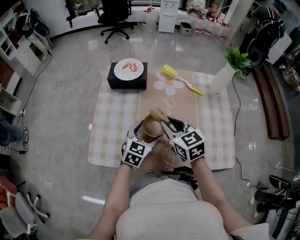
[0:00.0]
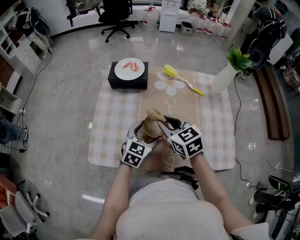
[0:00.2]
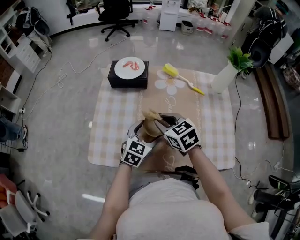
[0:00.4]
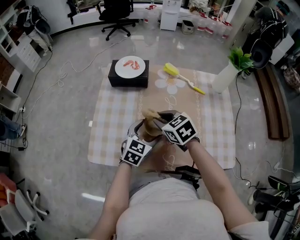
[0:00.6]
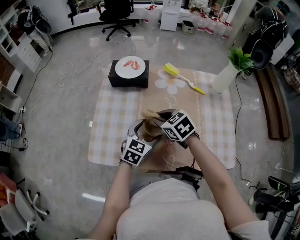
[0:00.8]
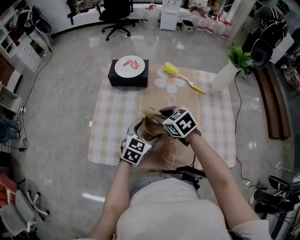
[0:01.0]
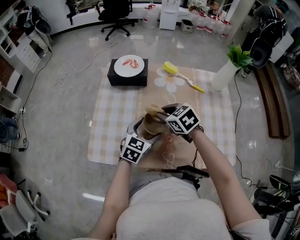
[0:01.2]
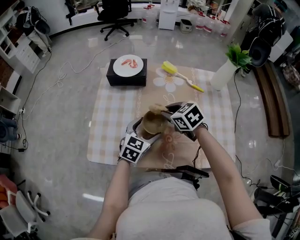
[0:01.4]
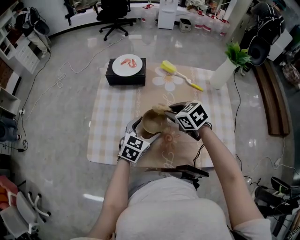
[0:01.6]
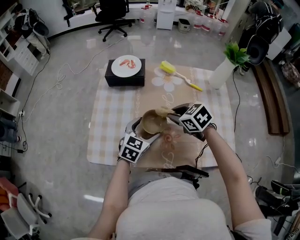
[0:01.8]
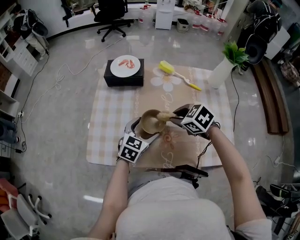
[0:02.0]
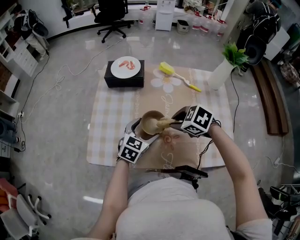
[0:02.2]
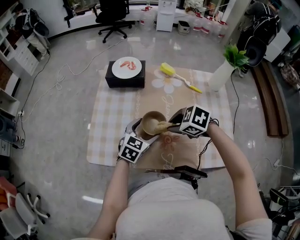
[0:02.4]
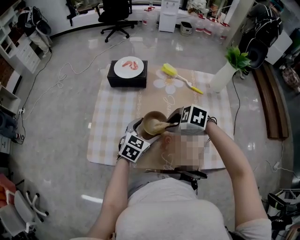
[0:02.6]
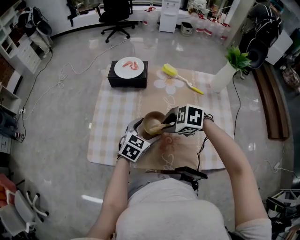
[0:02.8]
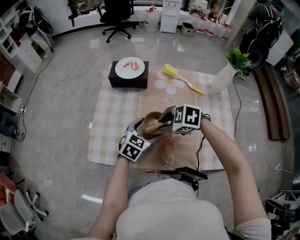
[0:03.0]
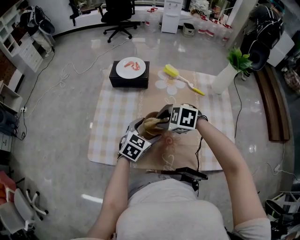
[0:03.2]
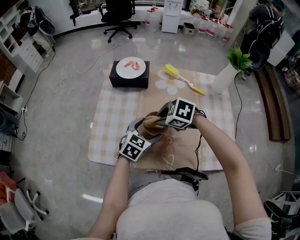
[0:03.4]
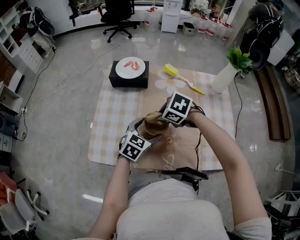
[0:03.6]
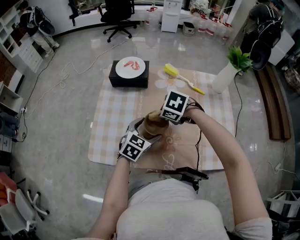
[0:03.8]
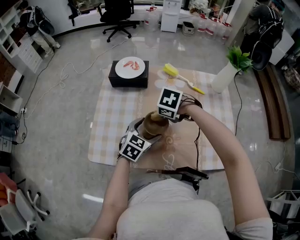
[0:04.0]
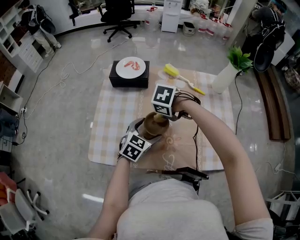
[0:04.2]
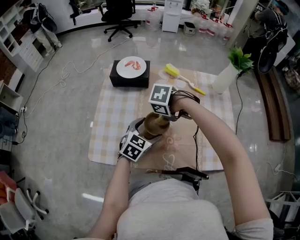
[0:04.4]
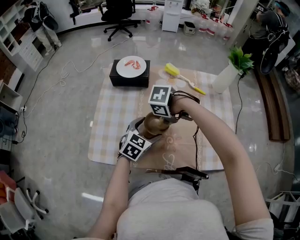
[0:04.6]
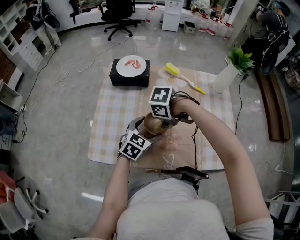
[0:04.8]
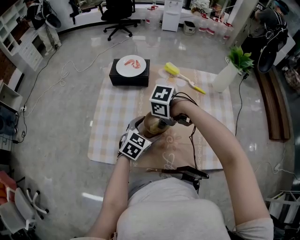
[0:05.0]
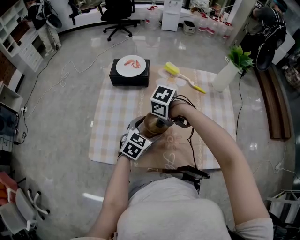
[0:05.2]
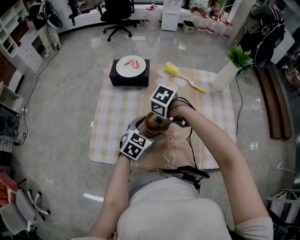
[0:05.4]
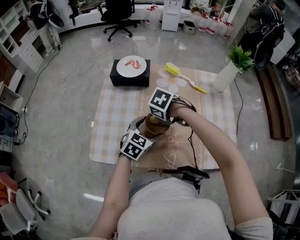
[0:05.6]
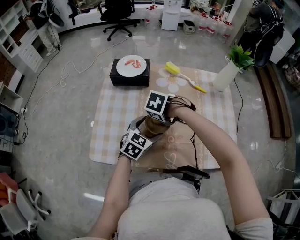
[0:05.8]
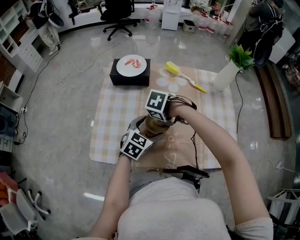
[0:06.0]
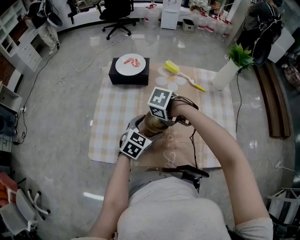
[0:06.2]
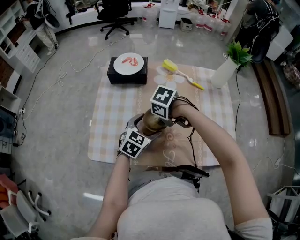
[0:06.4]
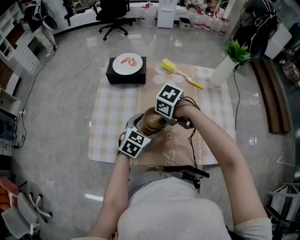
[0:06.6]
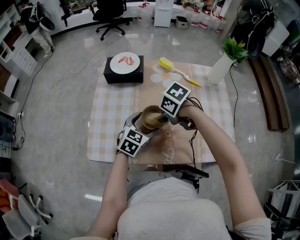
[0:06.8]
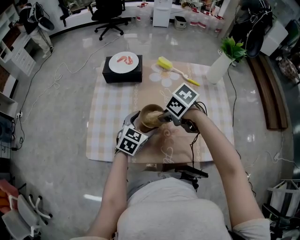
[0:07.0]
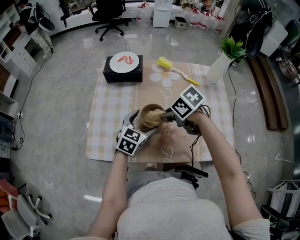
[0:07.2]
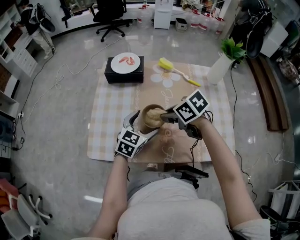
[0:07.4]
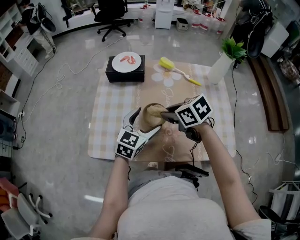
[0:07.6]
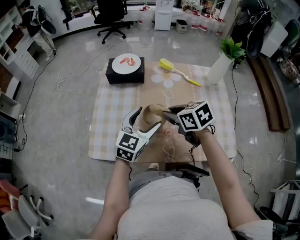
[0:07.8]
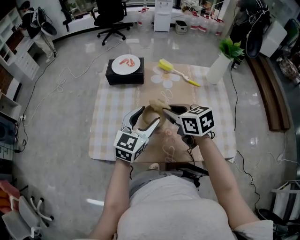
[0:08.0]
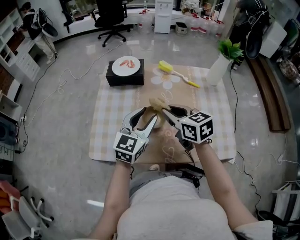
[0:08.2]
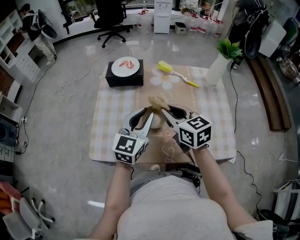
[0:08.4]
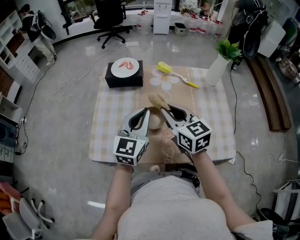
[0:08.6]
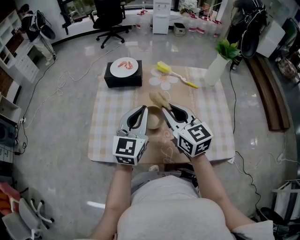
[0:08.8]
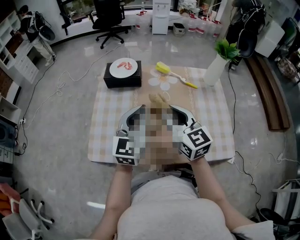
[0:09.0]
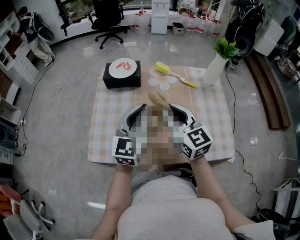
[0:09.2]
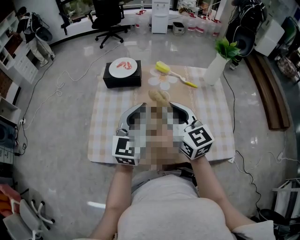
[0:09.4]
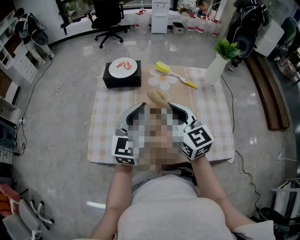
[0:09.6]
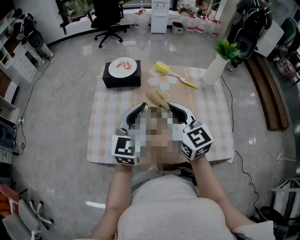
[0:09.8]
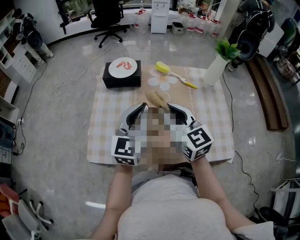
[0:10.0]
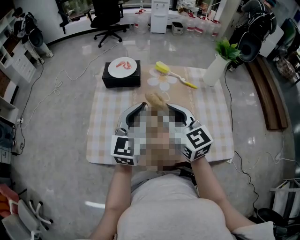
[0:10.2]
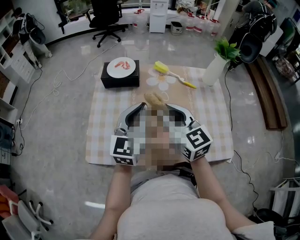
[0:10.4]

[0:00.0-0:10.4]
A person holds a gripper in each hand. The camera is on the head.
0.0 to 1.4 s: The right gripper moves downward, roughly 5 cm, and changes its angle by about 20 degrees.
1.4 to 3.0 s: The right gripper shifts by approximately 10 cm, and swivels some 40 degrees.
3.0 to 4.4 s: The right gripper changes place by approximately 5 cm, and rotates approximately 40 degrees.
4.4 to 6.0 s: There are only small adjustments of the grippers.
6.0 to 7.4 s: The right gripper moves upward, about 5 cm, and tilts its fingers roughly 30 degrees upward.
7.4 to 9.0 s: The grippers both shift upward by about 15 cm. The left gripper rotates roughly 30 degrees, and closes; the right gripper angles its fingers upward, by about 40 degrees.
9.0 to 10.4 s: The grippers move only a little.

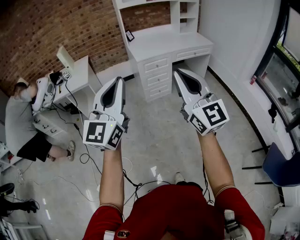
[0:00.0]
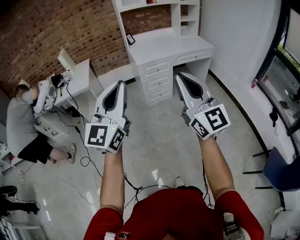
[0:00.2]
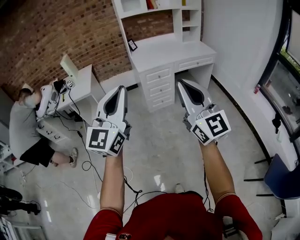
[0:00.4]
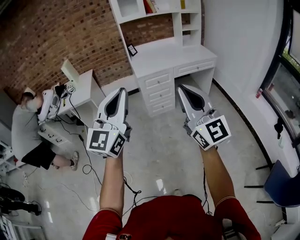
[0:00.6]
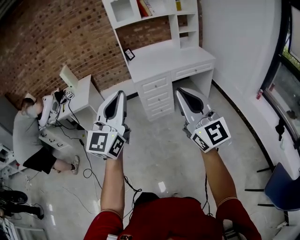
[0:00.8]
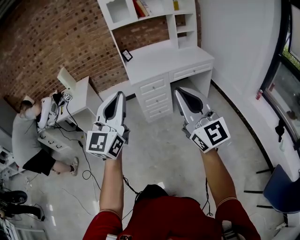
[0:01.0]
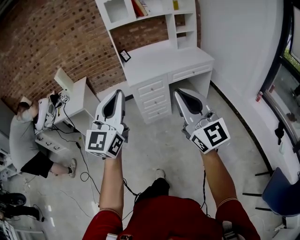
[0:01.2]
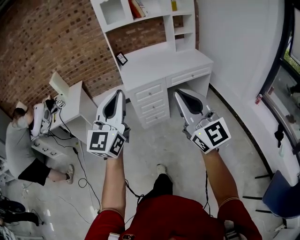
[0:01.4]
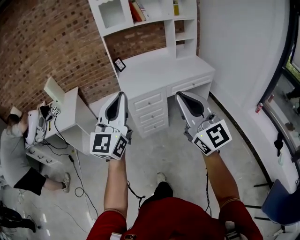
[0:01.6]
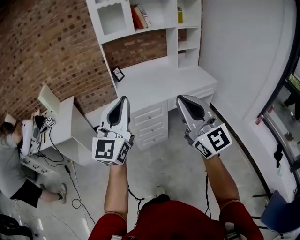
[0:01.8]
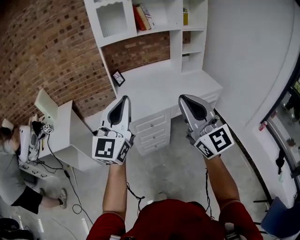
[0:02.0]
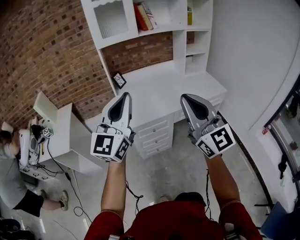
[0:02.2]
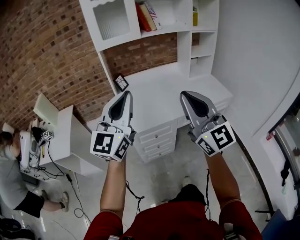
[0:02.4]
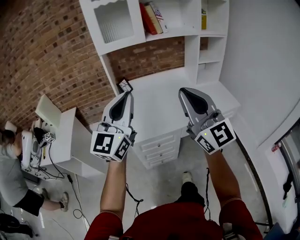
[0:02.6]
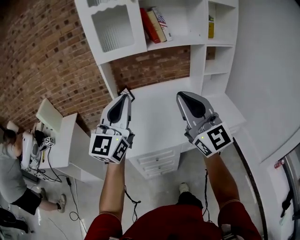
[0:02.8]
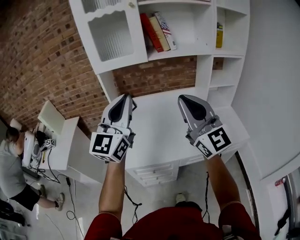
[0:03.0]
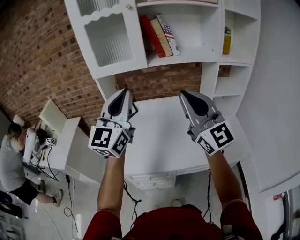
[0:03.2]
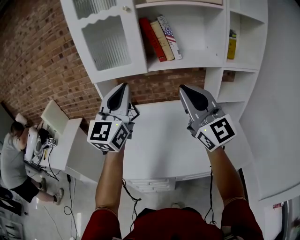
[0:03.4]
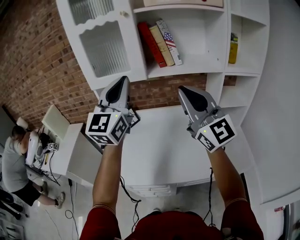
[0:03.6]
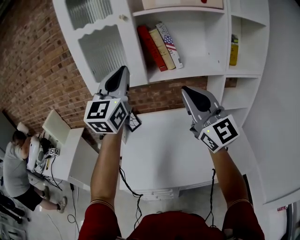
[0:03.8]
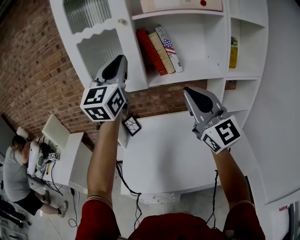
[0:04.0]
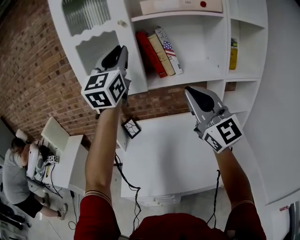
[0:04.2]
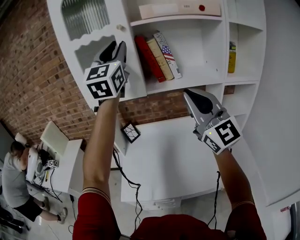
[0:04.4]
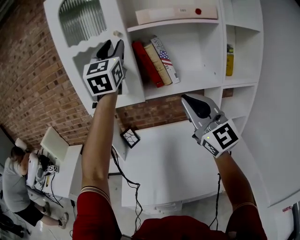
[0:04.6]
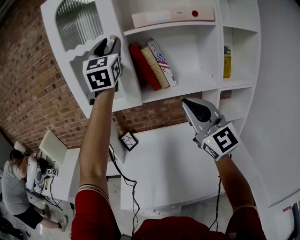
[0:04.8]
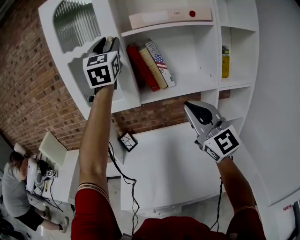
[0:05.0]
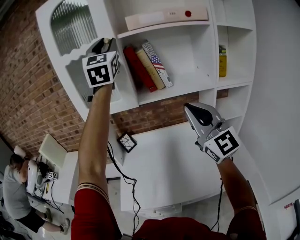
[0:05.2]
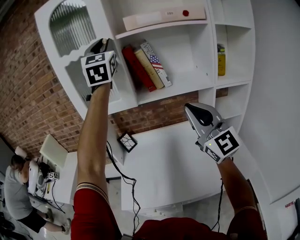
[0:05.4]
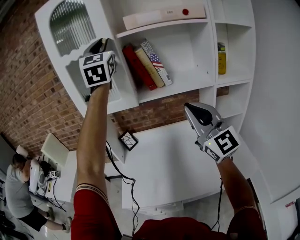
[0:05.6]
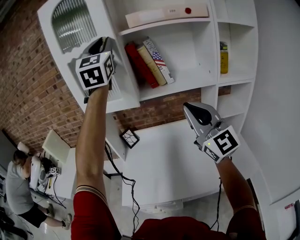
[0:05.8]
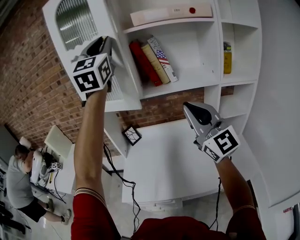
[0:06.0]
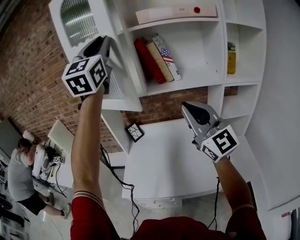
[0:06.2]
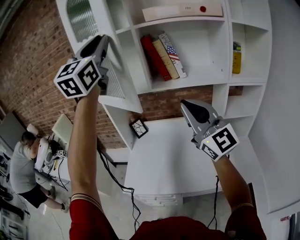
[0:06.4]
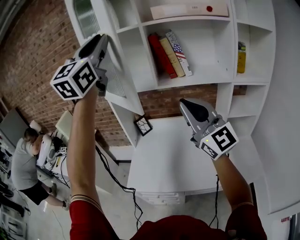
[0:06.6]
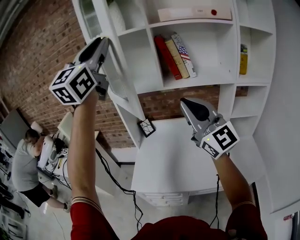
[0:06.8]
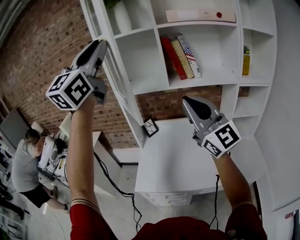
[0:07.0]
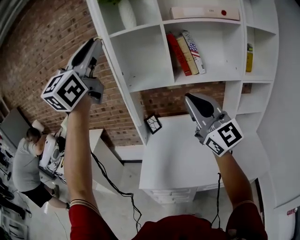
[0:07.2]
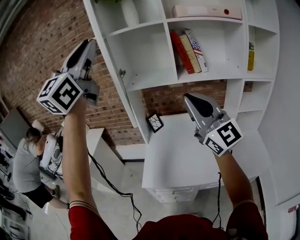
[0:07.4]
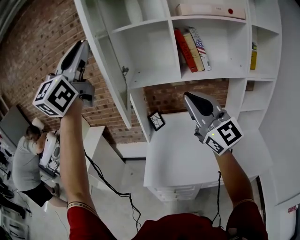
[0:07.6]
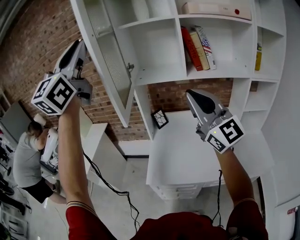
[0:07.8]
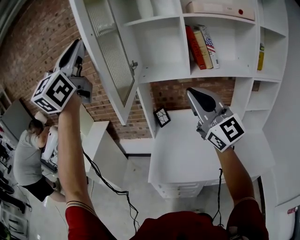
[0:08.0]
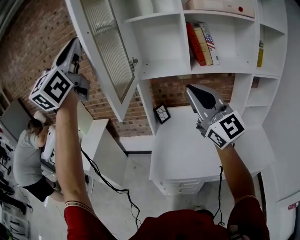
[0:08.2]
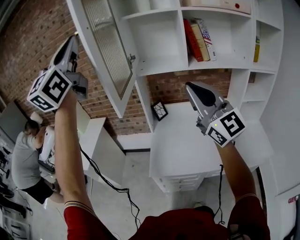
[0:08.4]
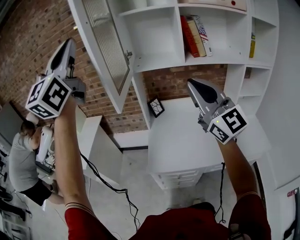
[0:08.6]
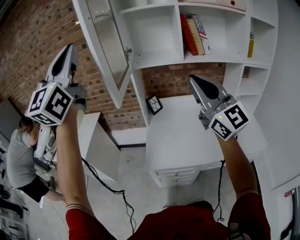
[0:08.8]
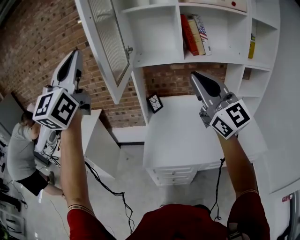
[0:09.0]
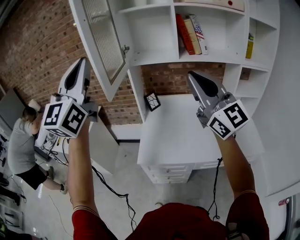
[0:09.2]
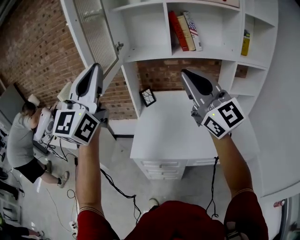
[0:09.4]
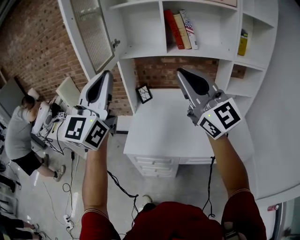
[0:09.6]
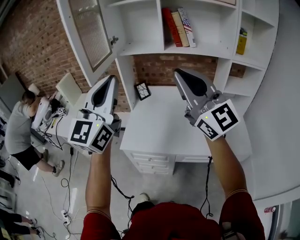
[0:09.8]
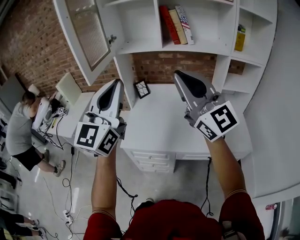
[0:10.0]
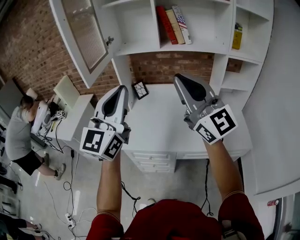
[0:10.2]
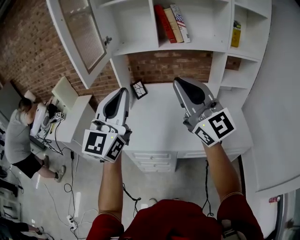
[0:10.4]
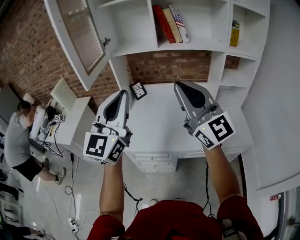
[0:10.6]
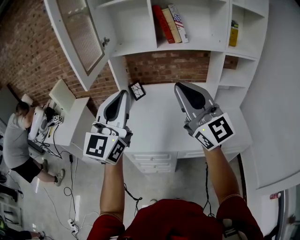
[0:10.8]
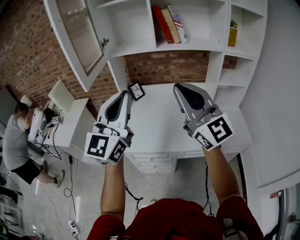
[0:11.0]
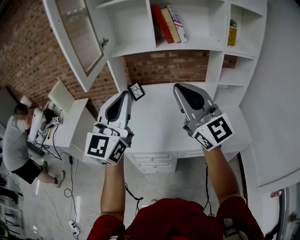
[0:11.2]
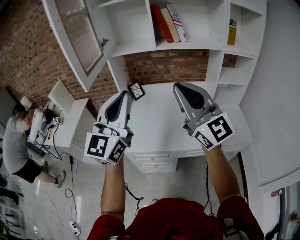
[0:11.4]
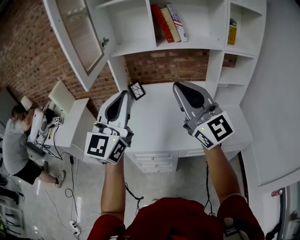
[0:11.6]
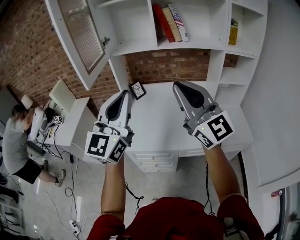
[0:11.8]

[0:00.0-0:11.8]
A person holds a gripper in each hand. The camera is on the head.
0.0 to 1.4 s: The right gripper is displaced to the right and forward by approximately 25 cm. Meanwhile the left gripper travels forward and to the right by about 25 cm.
1.4 to 3.0 s: Both grippers are carried forward, roughly 70 cm.
3.0 to 4.4 s: The left gripper goes some 35 cm forward and upward, and opens. Meanwhile the right gripper moves forward, to the right and upward, some 20 cm.
4.4 to 6.0 s: The left gripper goes roughly 5 cm upward.
6.0 to 7.4 s: The right gripper shifts approximately 15 cm to the left; the left gripper travels to the left and backward by approximately 25 cm.
7.4 to 8.8 s: The left gripper shifts roughly 15 cm to the left, while the right gripper goes approximately 5 cm to the left.
8.8 to 10.4 s: The left gripper goes approximately 35 cm to the right, downward and backward; the right gripper is displaced backward and to the right by about 15 cm.
10.4 to 11.8 s: The grippers stay close to where they were, moving slightly.

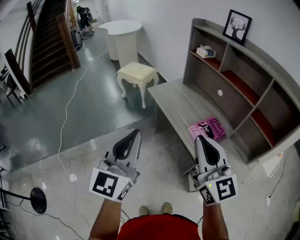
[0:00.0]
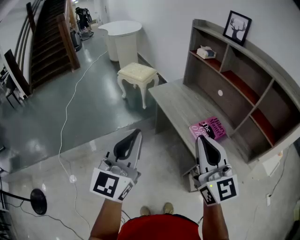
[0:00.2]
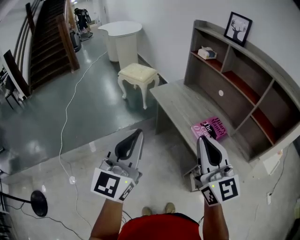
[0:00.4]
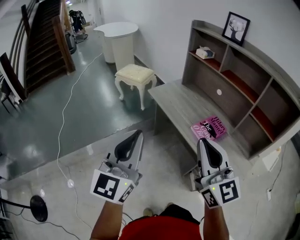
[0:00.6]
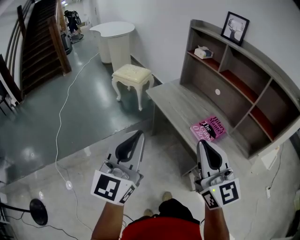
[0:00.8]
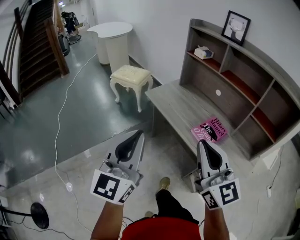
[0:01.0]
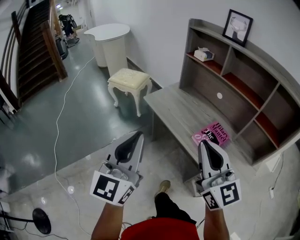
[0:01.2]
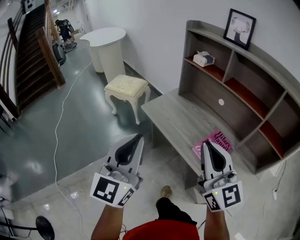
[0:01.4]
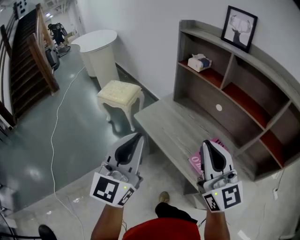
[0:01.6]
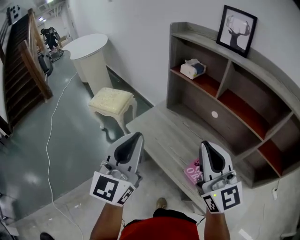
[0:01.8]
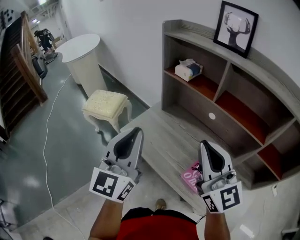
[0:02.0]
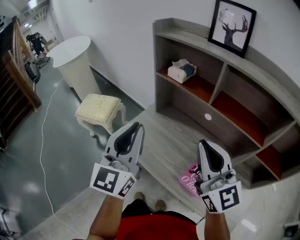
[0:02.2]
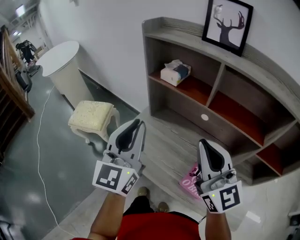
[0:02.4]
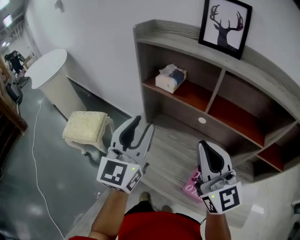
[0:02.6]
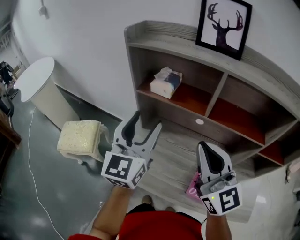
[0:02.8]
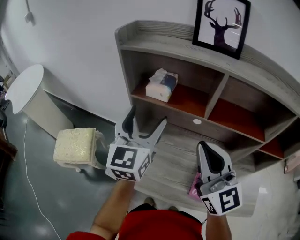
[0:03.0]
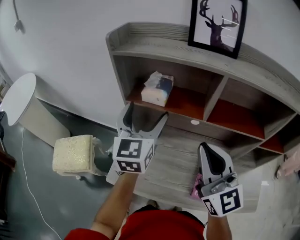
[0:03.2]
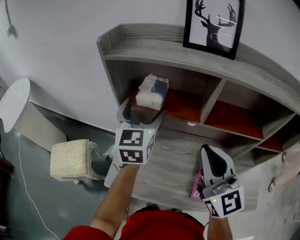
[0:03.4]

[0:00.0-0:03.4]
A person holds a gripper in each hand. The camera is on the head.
0.0 to 1.6 s: The grippers both shift forward by approximately 20 cm.
1.6 to 3.4 s: The left gripper changes place by some 50 cm, swivels approximately 30 degrees, and opens its fingers. The right gripper moves approximately 25 cm, and changes its angle by roughly 40 degrees.
